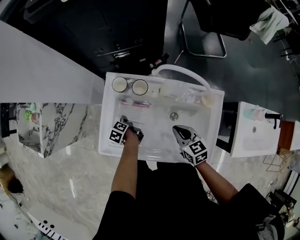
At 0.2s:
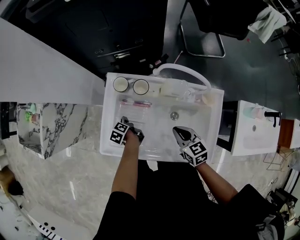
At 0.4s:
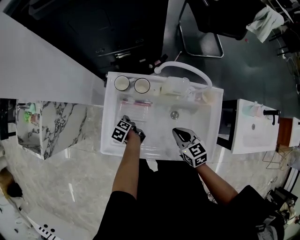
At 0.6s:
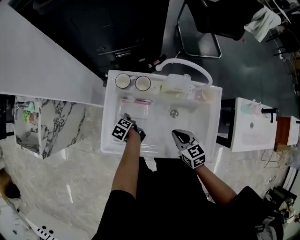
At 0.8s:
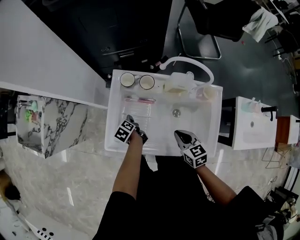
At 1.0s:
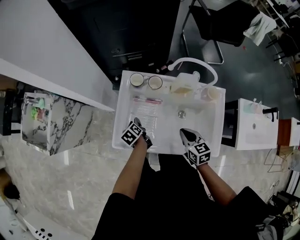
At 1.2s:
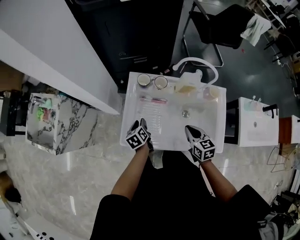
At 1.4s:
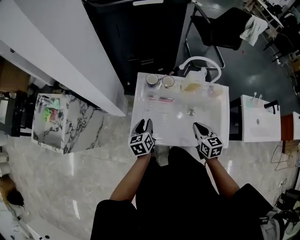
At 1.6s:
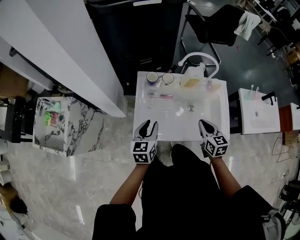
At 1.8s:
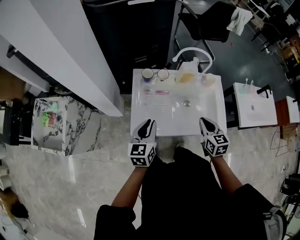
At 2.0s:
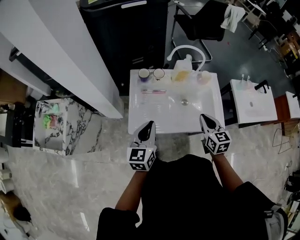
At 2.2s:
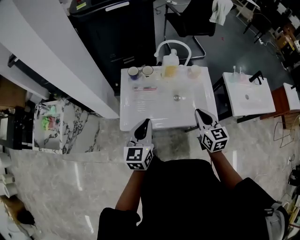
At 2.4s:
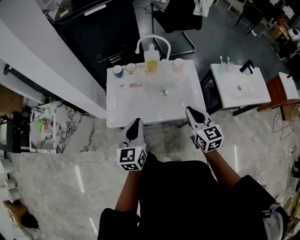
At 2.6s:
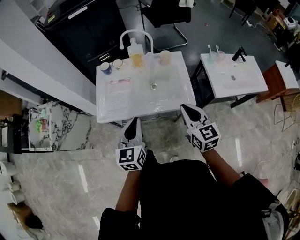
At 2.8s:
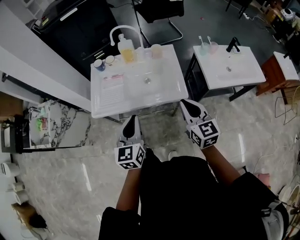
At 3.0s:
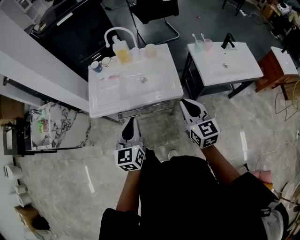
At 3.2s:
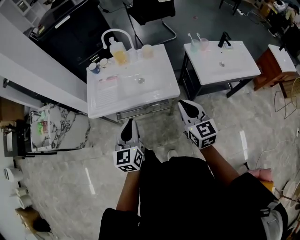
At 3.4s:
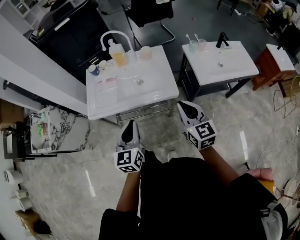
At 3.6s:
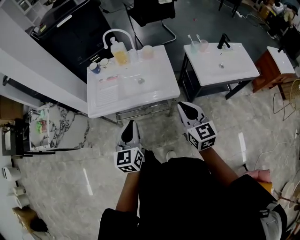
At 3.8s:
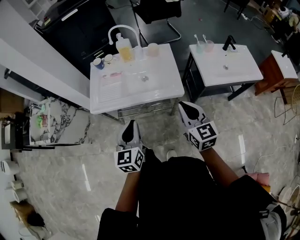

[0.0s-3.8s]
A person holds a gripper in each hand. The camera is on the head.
0.0s to 1.2s: The left gripper is displaced upward and backward by roughly 15 cm, rotates roughly 40 degrees, and opens its fingers. The right gripper shifts about 10 cm to the left and backward.
1.2s to 2.6s: Both grippers move backward, upward and to the right, roughly 40 cm. The right gripper turns by approximately 20 degrees. The left gripper changes its angle by about 50 degrees, and closes up.
2.6s to 3.8s: Both grippers move backward and to the right, roughly 10 cm.

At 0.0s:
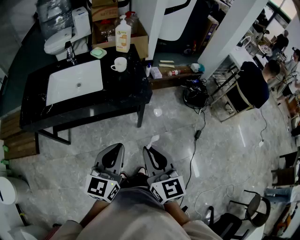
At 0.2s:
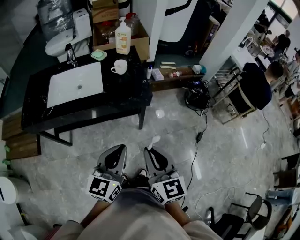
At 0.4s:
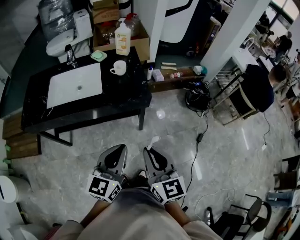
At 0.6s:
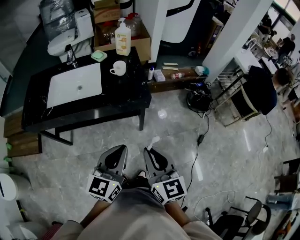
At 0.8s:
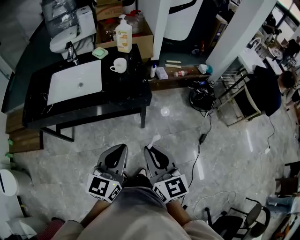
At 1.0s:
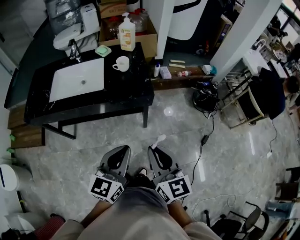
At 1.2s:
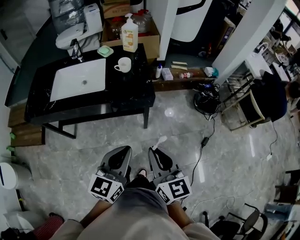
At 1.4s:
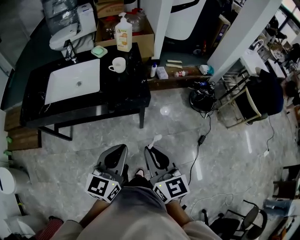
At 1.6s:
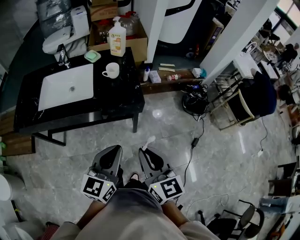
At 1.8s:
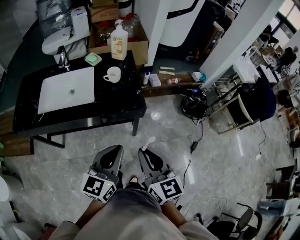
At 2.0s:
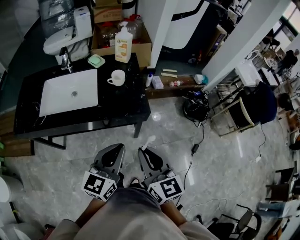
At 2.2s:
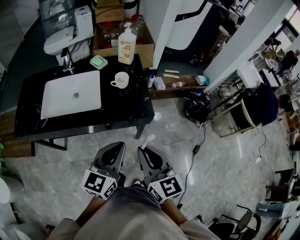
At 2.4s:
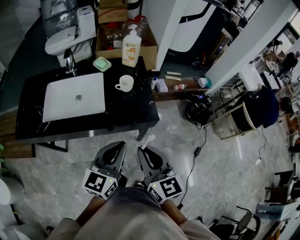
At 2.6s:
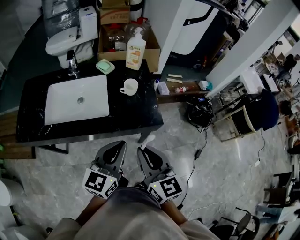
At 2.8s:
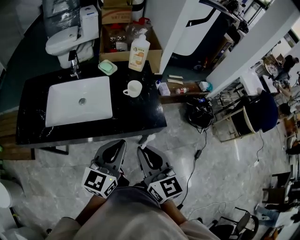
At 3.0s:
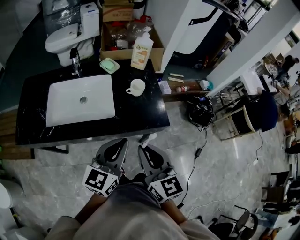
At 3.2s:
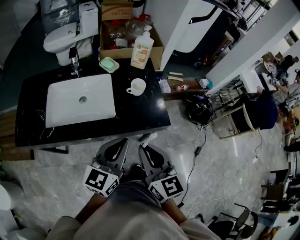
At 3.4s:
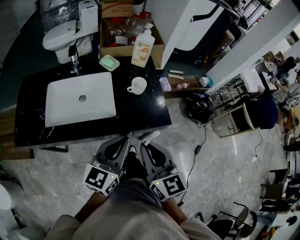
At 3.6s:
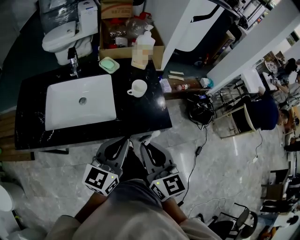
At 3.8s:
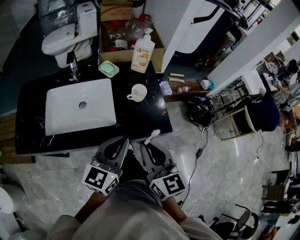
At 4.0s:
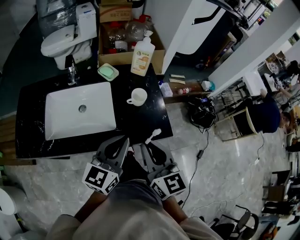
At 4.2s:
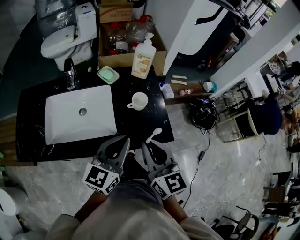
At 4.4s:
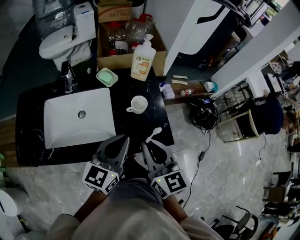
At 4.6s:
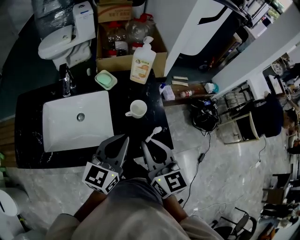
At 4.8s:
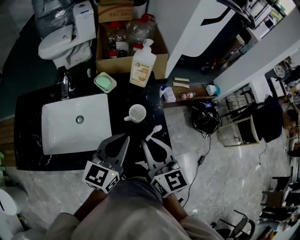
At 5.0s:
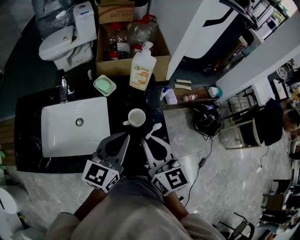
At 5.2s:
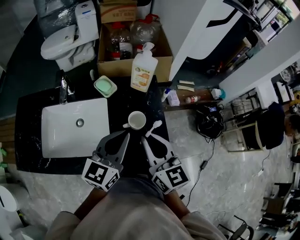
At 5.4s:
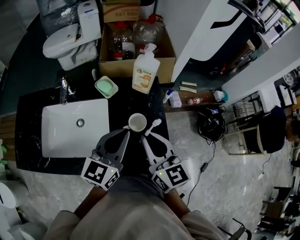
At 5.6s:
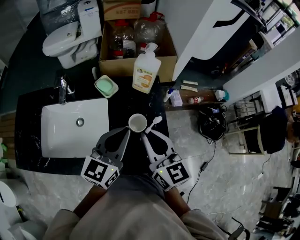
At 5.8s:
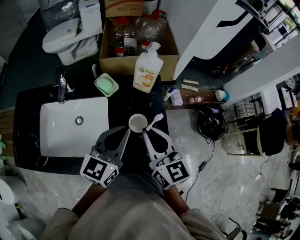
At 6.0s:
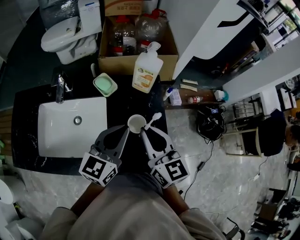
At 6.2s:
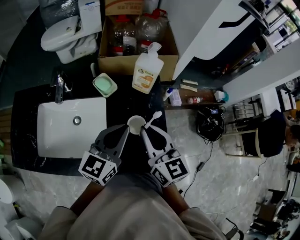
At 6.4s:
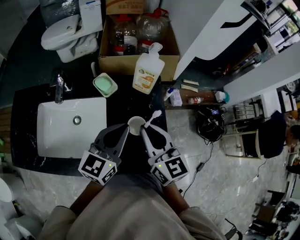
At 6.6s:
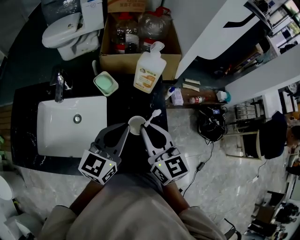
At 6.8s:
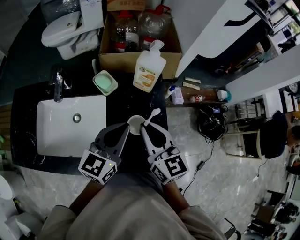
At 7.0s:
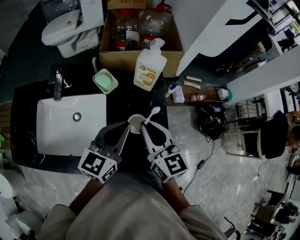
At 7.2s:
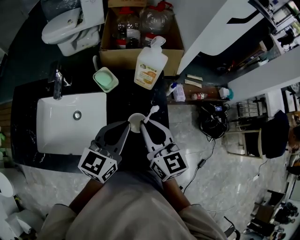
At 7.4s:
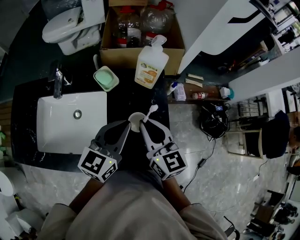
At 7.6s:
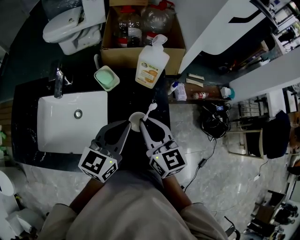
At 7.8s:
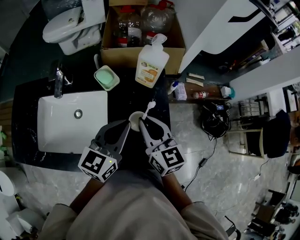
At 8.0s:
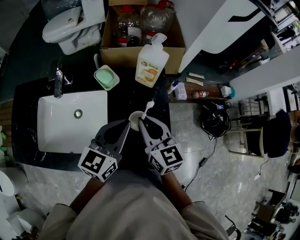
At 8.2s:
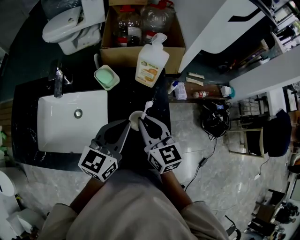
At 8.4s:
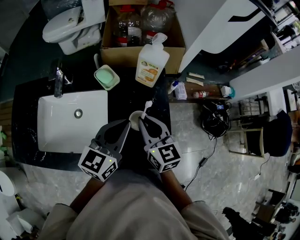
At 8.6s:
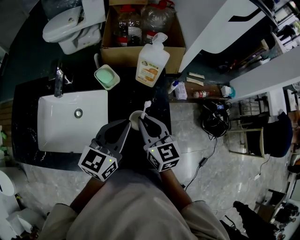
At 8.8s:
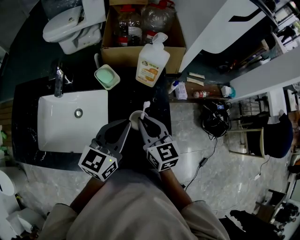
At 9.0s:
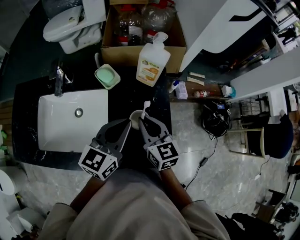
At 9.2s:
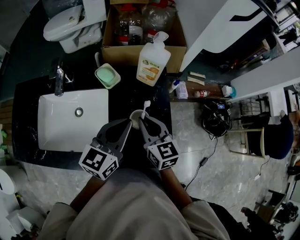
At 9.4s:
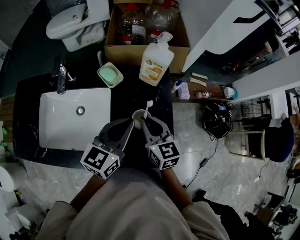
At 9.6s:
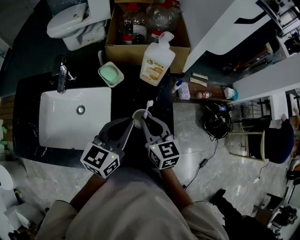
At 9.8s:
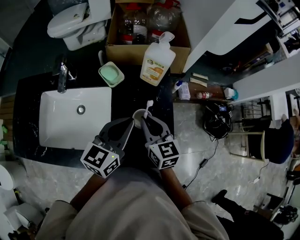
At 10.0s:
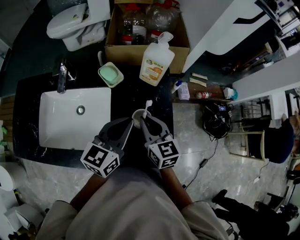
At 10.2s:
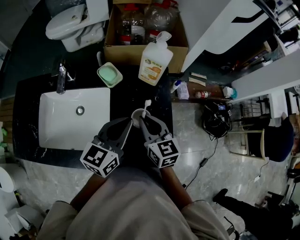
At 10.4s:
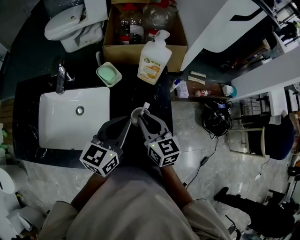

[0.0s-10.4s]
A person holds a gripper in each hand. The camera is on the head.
0.0s to 1.4s: The left gripper goes roughly 5 cm to the right. Meanwhile the right gripper goes approximately 10 cm to the right and forward.
1.4s to 3.0s: The left gripper heads forward and to the left, covering about 20 cm. Meanwhile the right gripper shifts roughly 20 cm to the left and forward.
3.0s to 4.4s: The two grippers go roughly 15 cm forward.
4.4s to 6.0s: The grippers both shift forward by roughly 15 cm.
6.0s to 7.4s: The grippers move only a little.
7.4s to 9.0s: The right gripper heads downward, covering roughly 5 cm.
9.0s to 10.4s: Both grippers stay about where they are.

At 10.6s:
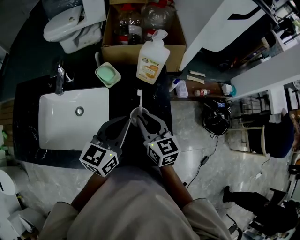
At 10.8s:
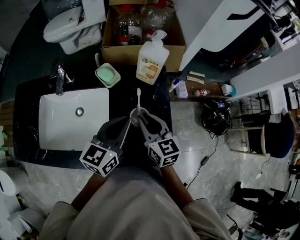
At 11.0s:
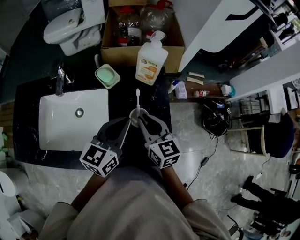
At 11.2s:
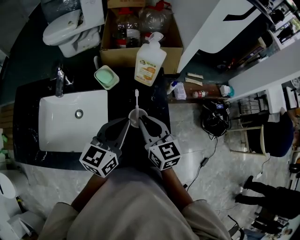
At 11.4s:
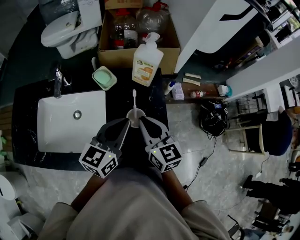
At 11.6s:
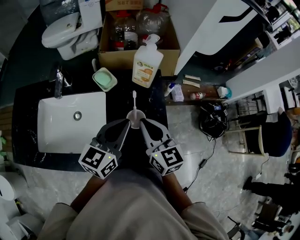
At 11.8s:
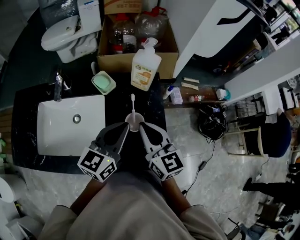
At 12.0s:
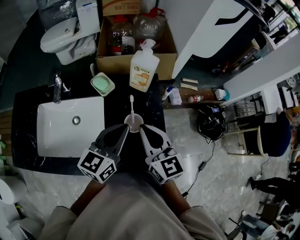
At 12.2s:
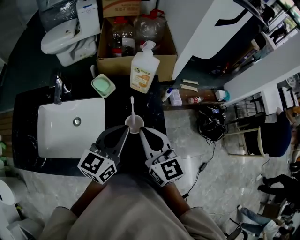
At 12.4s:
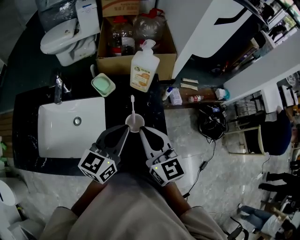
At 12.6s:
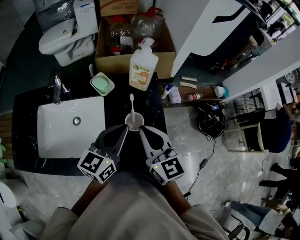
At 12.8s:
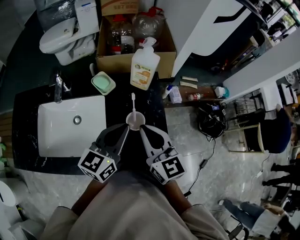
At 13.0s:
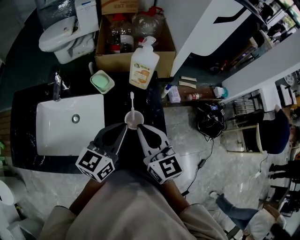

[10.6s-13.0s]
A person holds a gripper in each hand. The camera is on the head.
10.6s to 11.8s: The right gripper goes about 5 cm upward.
11.8s to 13.0s: The grippers move only a little.

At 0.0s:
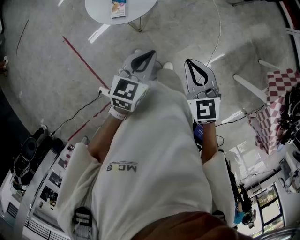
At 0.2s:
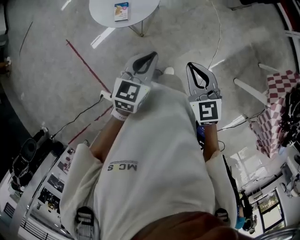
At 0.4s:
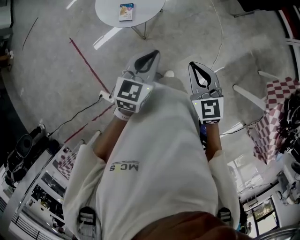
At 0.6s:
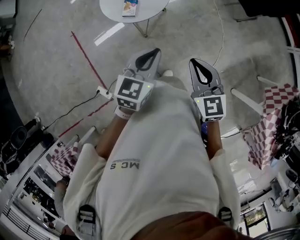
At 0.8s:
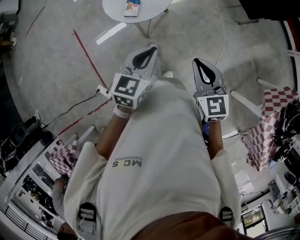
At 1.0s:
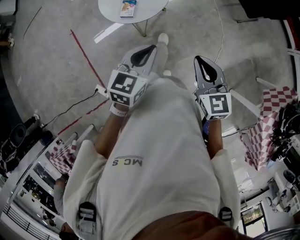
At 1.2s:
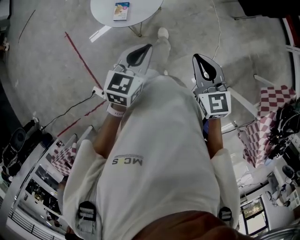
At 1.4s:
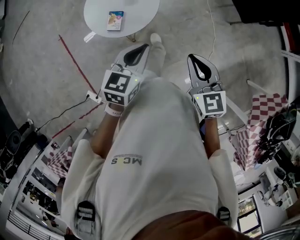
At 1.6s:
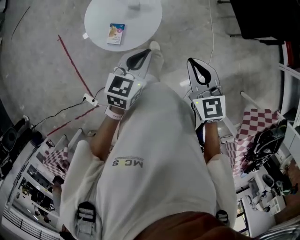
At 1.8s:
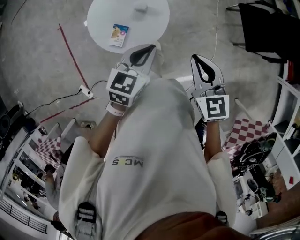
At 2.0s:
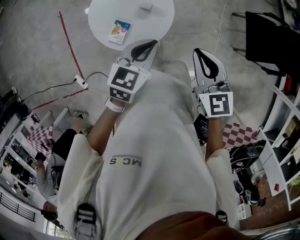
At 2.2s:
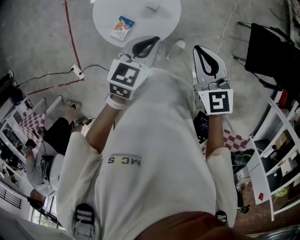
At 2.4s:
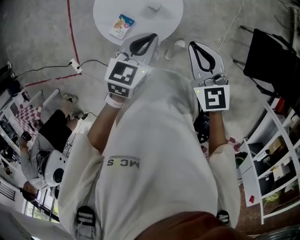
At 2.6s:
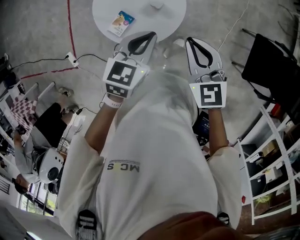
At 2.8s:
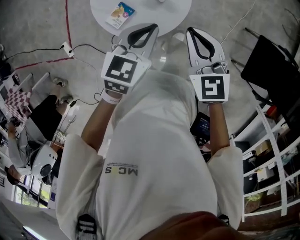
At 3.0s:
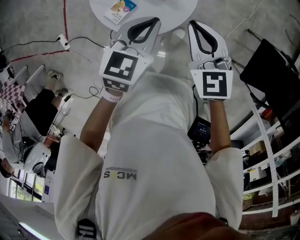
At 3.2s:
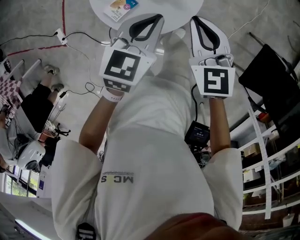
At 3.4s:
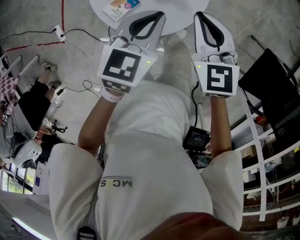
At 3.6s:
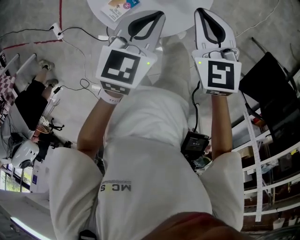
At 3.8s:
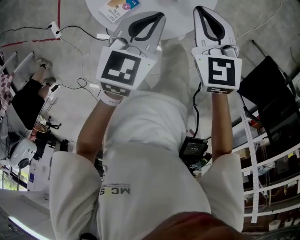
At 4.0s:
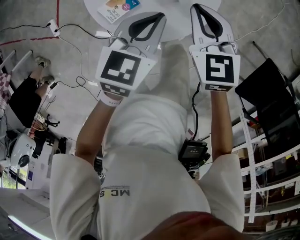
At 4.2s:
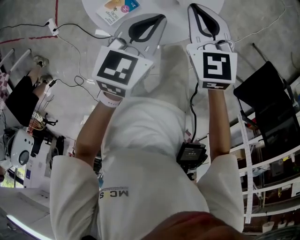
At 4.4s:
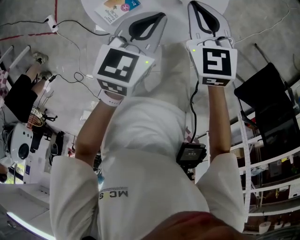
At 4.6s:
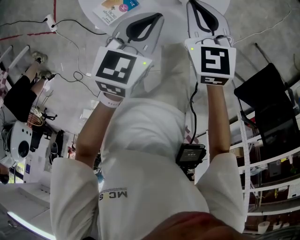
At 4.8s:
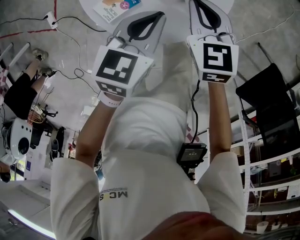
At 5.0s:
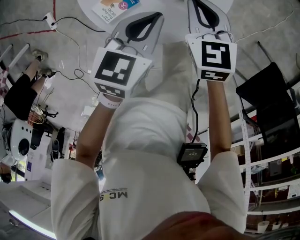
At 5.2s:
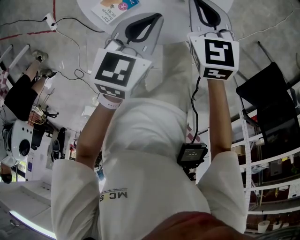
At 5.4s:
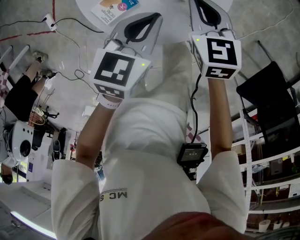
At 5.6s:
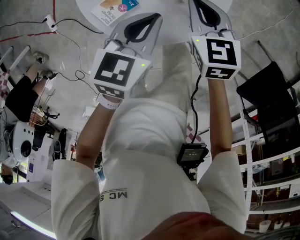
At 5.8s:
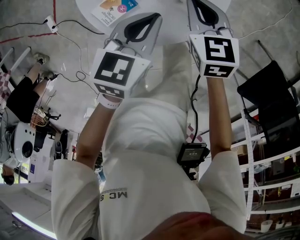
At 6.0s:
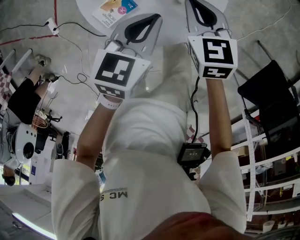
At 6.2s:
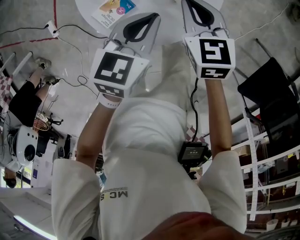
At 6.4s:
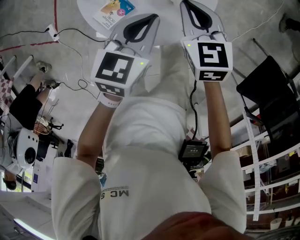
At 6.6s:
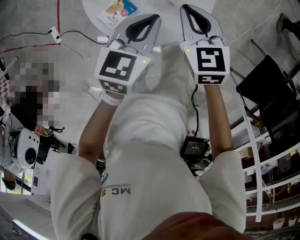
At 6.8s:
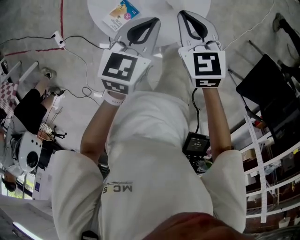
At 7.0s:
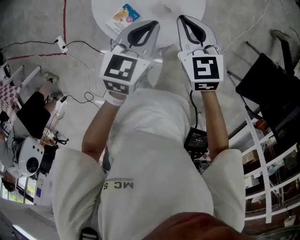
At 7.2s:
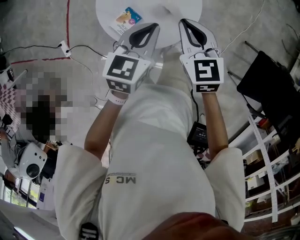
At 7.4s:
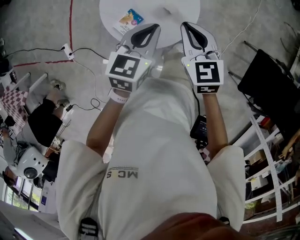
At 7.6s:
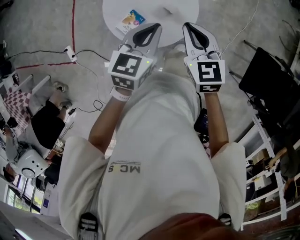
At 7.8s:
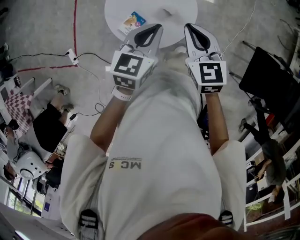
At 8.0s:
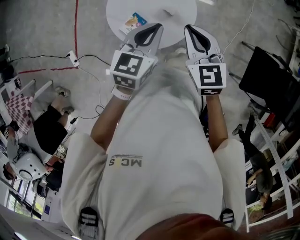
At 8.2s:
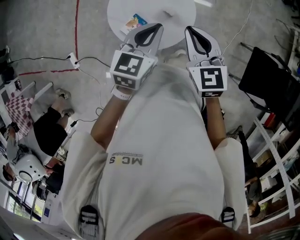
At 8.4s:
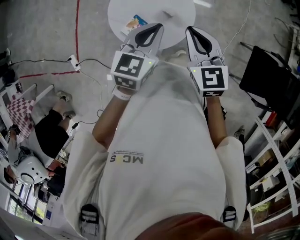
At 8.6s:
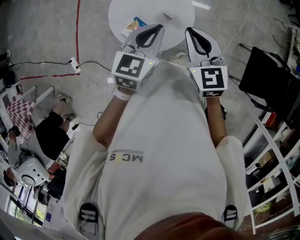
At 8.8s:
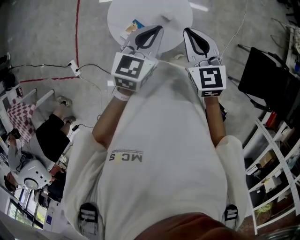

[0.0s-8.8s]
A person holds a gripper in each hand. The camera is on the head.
0.0s to 1.4s: The grippers both shift forward by some 15 cm.
1.4s to 3.0s: The left gripper moves about 35 cm, and rotates approximately 30 degrees, while the right gripper moves approximately 40 cm, and swivels roughly 40 degrees.
3.0s to 4.4s: The left gripper goes some 15 cm downward. Meanwhile the right gripper moves downward and forward, approximately 20 cm.
4.4s to 5.8s: The grippers make only small movements.
5.8s to 7.4s: Both grippers move upward, approximately 20 cm.
7.4s to 8.8s: Both grippers travel together upward, about 10 cm.
